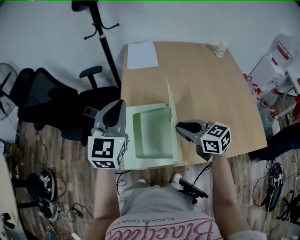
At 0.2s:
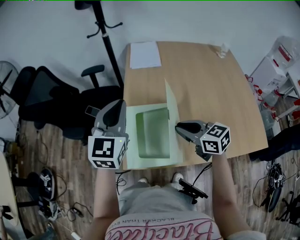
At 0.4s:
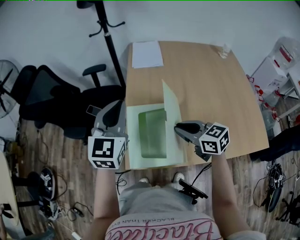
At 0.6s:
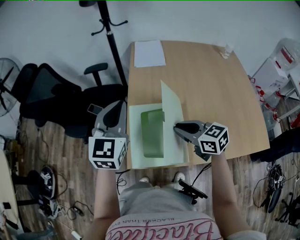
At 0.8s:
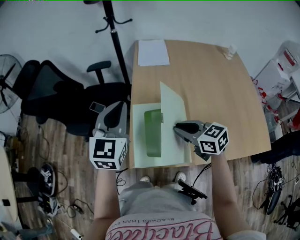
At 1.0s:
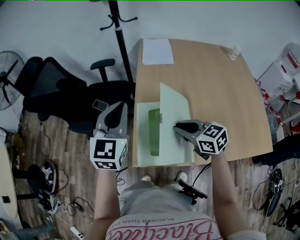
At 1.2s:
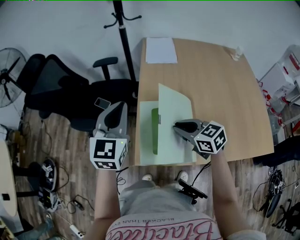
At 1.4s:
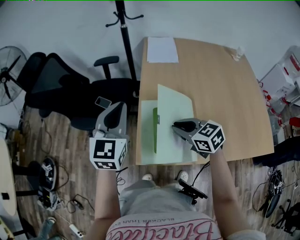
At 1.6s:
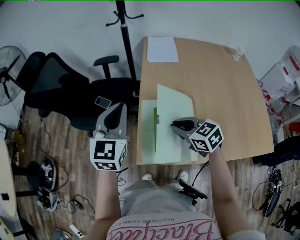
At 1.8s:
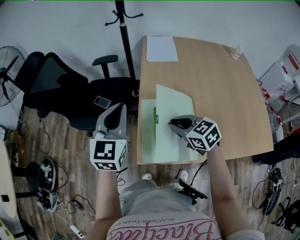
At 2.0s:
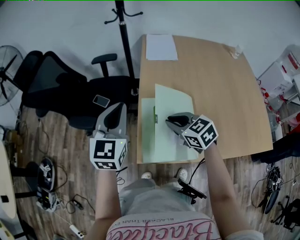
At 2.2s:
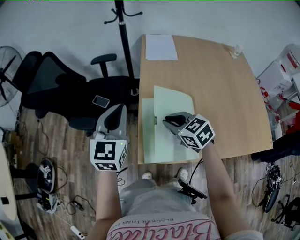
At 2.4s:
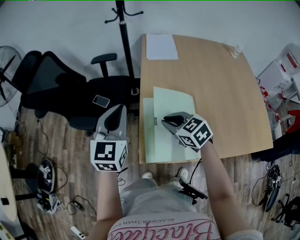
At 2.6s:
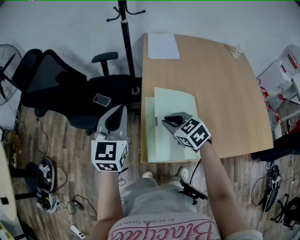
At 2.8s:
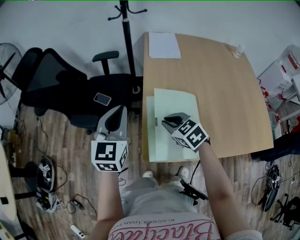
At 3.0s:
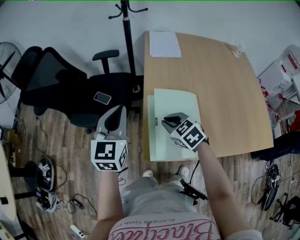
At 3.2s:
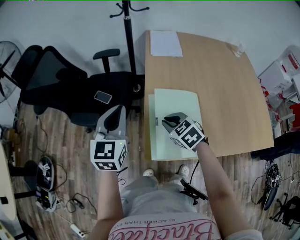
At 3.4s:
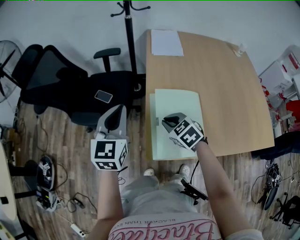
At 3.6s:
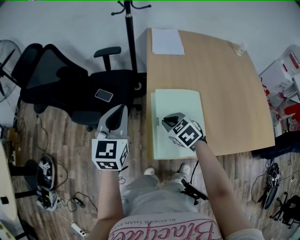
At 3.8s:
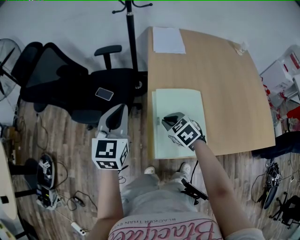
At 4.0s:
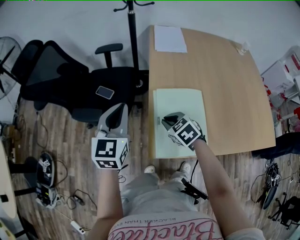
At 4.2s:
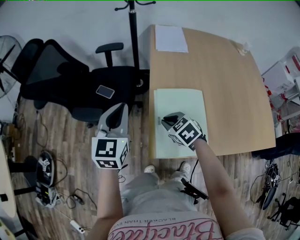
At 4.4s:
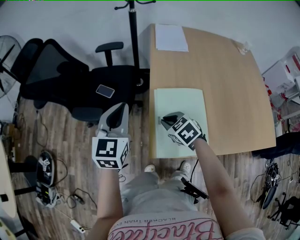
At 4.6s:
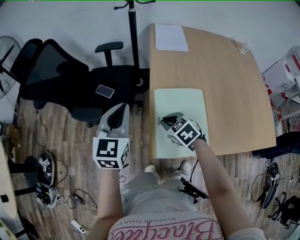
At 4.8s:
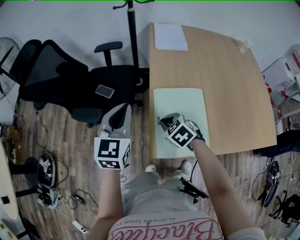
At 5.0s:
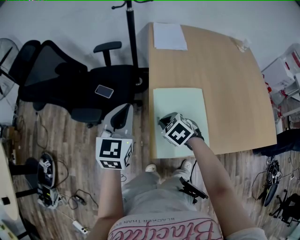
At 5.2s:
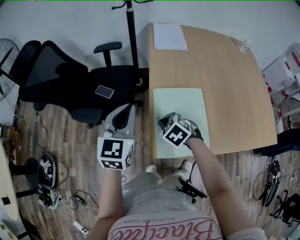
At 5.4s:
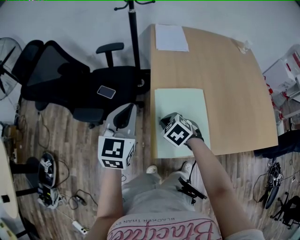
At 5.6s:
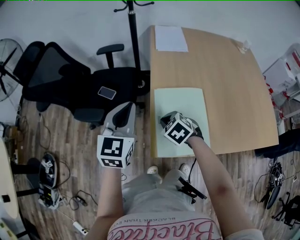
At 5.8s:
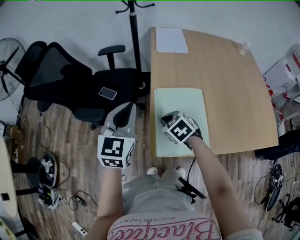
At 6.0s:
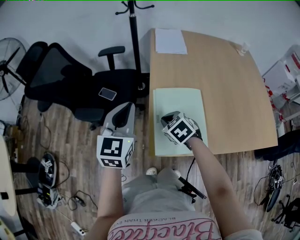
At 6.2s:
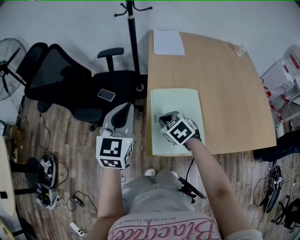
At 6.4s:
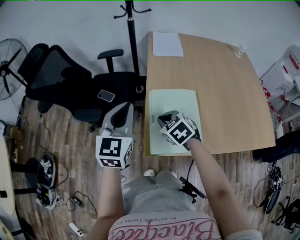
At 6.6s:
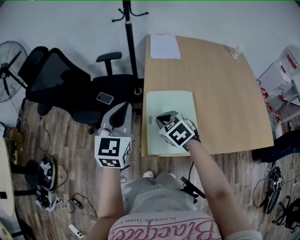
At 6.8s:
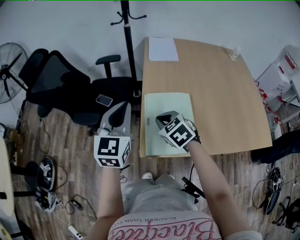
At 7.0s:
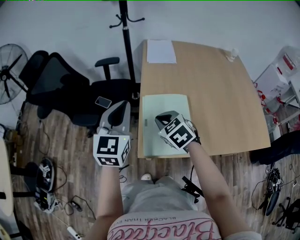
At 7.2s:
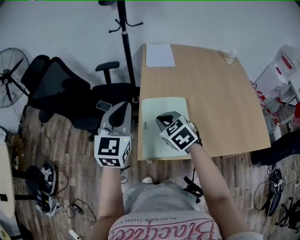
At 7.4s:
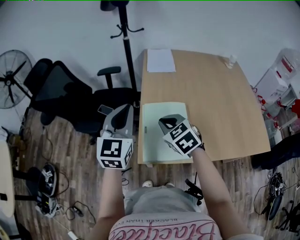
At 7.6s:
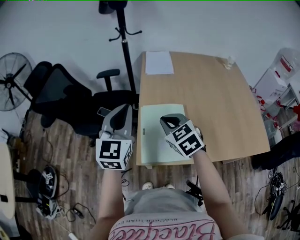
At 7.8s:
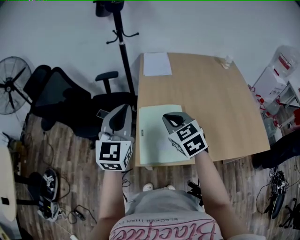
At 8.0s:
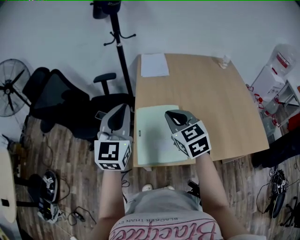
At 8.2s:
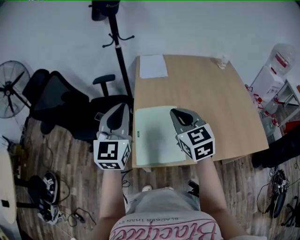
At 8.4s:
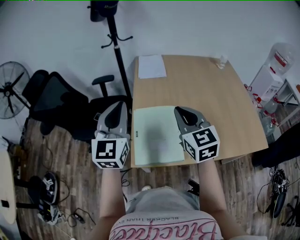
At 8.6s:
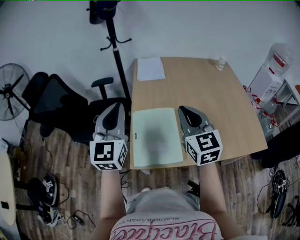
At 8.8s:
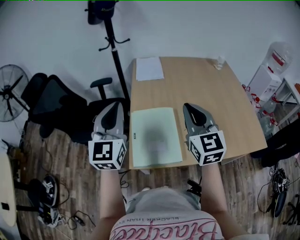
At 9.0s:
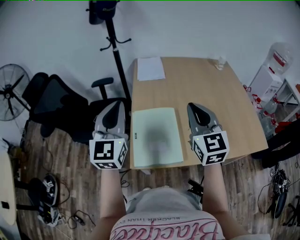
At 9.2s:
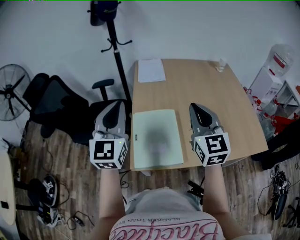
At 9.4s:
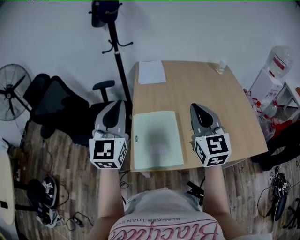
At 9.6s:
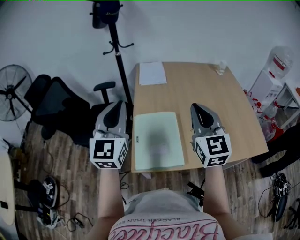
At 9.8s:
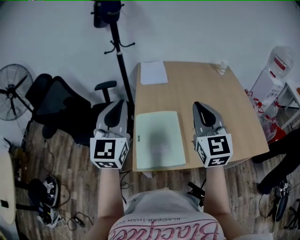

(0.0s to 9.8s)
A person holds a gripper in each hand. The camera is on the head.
0.0s - 1.4s: The two grippers go some 10 cm to the left.
1.4s - 2.8s: The left gripper moves about 5 cm. Meanwhile the right gripper moves to the left, roughly 5 cm.
2.8s - 4.2s: The right gripper heads downward, covering roughly 5 cm.
4.2s - 5.6s: The grippers make only small movements.
5.6s - 7.0s: The left gripper shifts some 5 cm upward. The right gripper shifts about 10 cm upward.
7.0s - 8.4s: The right gripper moves upward and to the right, about 20 cm, and angles its fingers upward, by some 30 degrees. Meanwhile the left gripper moves upward, roughly 5 cm.
8.4s - 9.8s: The right gripper heads upward and to the right, covering roughly 10 cm.

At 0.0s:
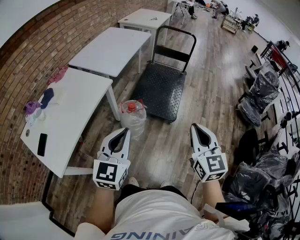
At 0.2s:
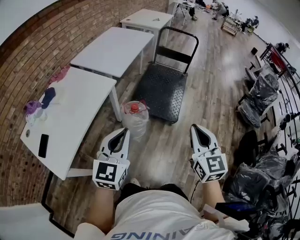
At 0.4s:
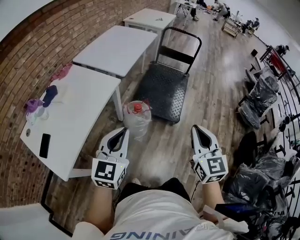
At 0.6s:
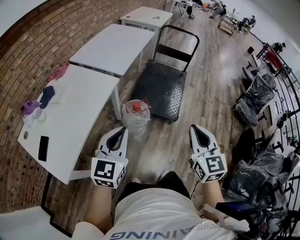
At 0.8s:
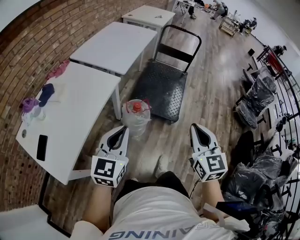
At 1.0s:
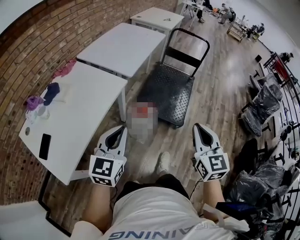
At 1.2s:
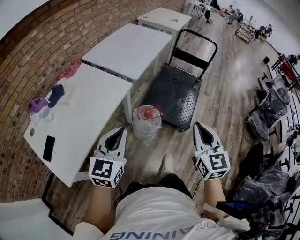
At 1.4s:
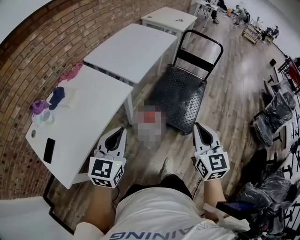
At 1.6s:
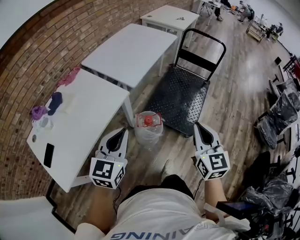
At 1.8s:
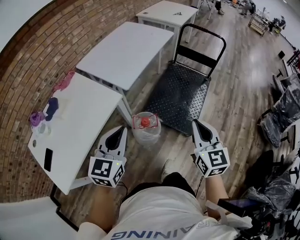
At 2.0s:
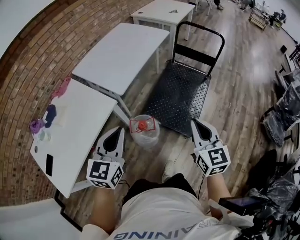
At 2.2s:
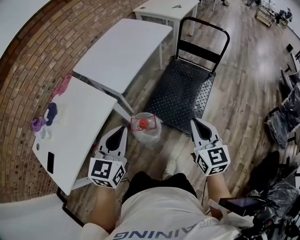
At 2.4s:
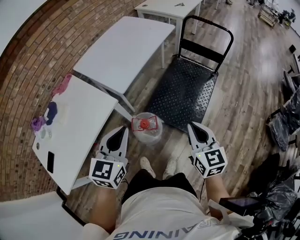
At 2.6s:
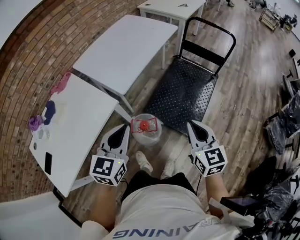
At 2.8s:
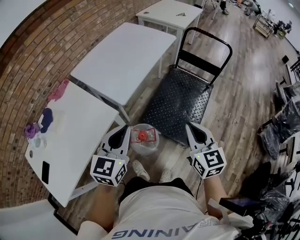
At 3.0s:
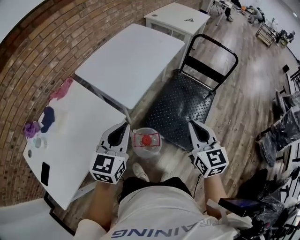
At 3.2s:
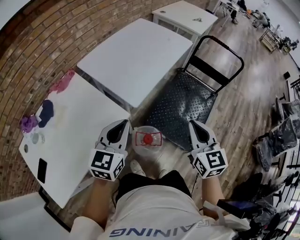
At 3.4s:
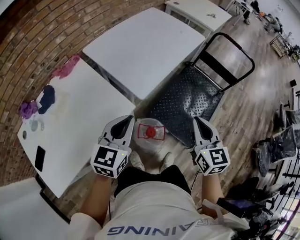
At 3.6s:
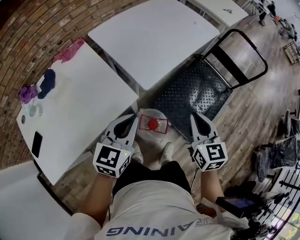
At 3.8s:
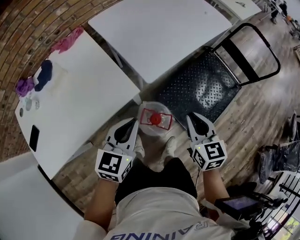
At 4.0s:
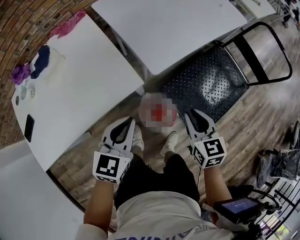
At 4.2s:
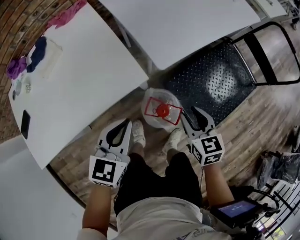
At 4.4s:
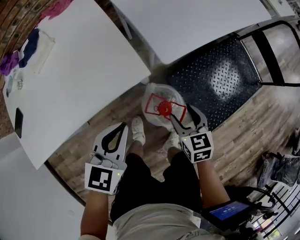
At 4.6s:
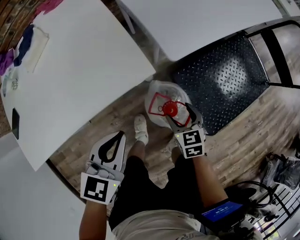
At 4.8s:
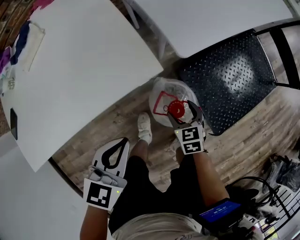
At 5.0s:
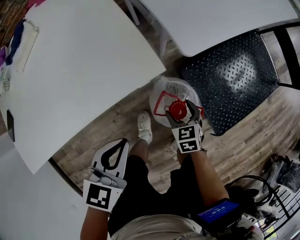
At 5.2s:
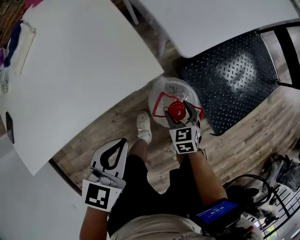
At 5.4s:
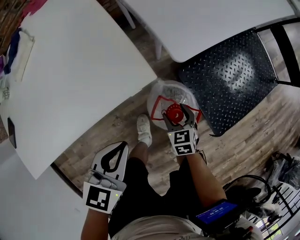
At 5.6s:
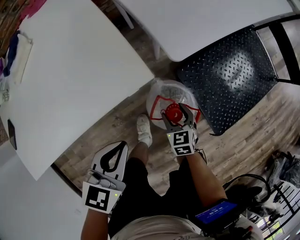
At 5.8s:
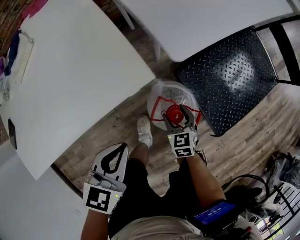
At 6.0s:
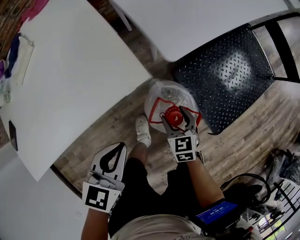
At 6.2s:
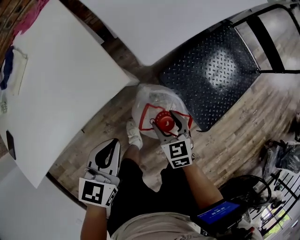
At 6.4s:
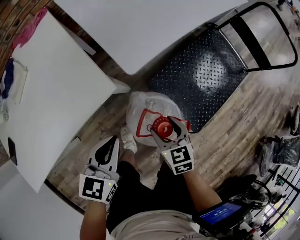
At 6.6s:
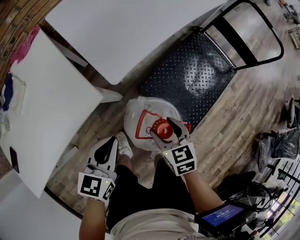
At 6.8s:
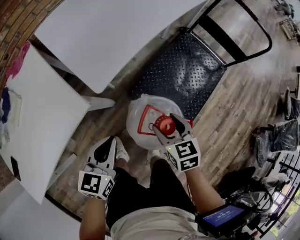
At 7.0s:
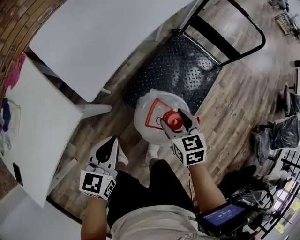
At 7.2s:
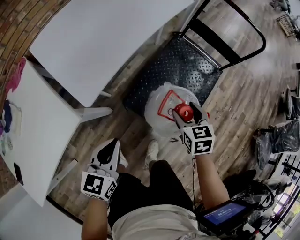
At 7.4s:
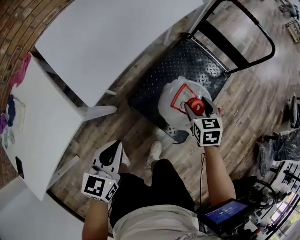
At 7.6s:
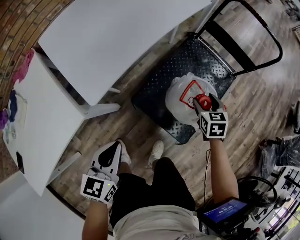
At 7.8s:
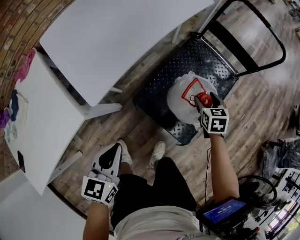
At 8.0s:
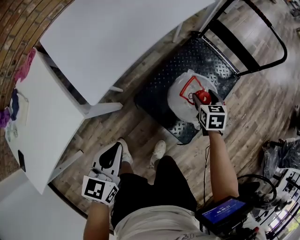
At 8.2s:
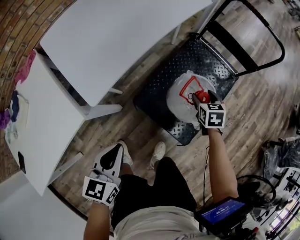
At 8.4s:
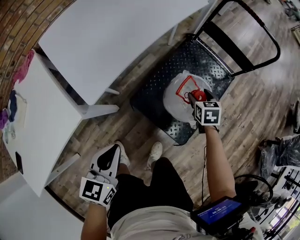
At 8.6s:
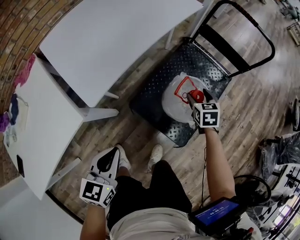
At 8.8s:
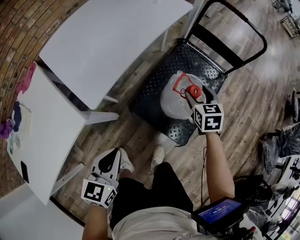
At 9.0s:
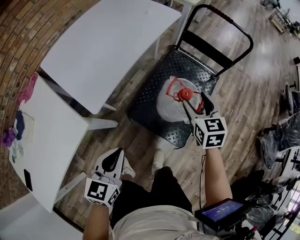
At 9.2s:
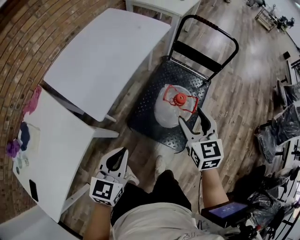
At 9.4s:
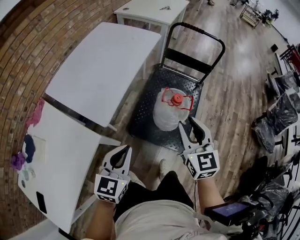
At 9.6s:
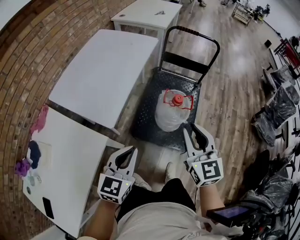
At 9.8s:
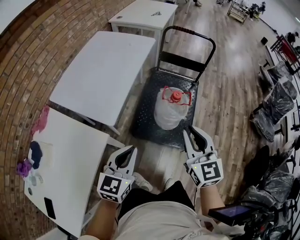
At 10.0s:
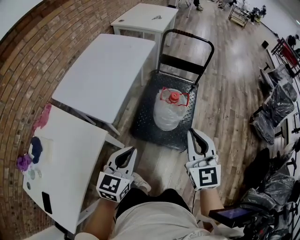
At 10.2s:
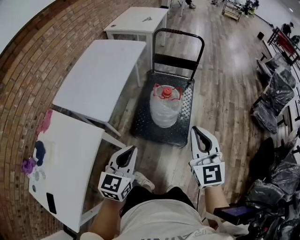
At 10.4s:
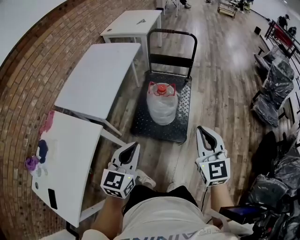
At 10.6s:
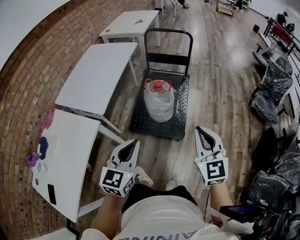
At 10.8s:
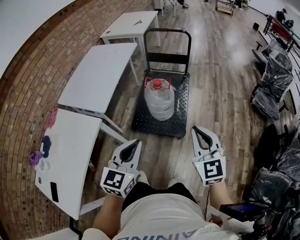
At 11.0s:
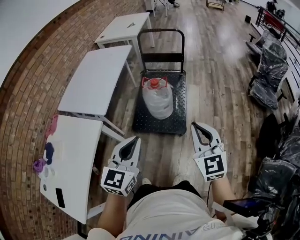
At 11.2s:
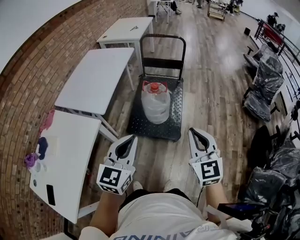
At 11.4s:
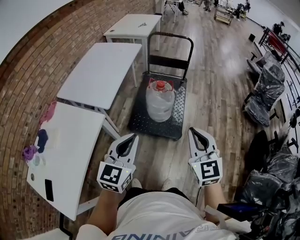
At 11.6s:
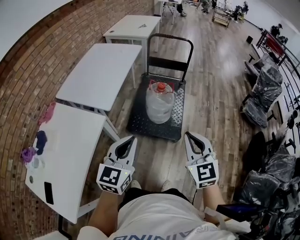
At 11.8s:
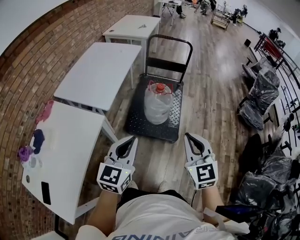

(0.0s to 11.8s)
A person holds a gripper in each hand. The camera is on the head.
0.0s - 1.4s: The left gripper moves to the left and forward, approximately 15 cm; the right gripper shifts roughly 20 cm forward and to the left.
1.4s - 3.0s: Both grippers travel together forward, about 25 cm.
3.0s - 4.4s: The left gripper is displaced downward by approximately 25 cm, and changes its angle by approximately 30 degrees, while the right gripper is displaced downward by roughly 35 cm, swivels some 40 degrees, and opens.
4.4s - 6.0s: The right gripper is displaced downward by roughly 15 cm, while the left gripper is displaced downward by roughly 5 cm.
6.0s - 7.4s: The left gripper goes approximately 25 cm to the right, forward and upward; the right gripper goes approximately 40 cm to the right, upward and forward, and rotates about 20 degrees.
7.4s - 8.8s: The right gripper goes downward and returns, roughly 5 cm each way.
8.8s - 10.4s: The right gripper is displaced backward and upward by about 50 cm, tilts its fingers about 30 degrees upward, and closes up. Meanwhile the left gripper heads upward, backward and to the right, covering approximately 20 cm, and swivels approximately 30 degrees.
10.4s - 11.8s: The left gripper shifts approximately 10 cm backward and to the left. Meanwhile the right gripper is displaced backward and to the left by some 15 cm.

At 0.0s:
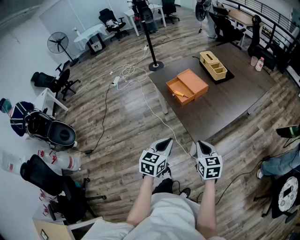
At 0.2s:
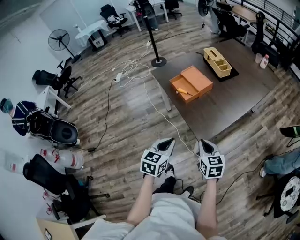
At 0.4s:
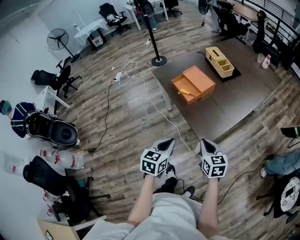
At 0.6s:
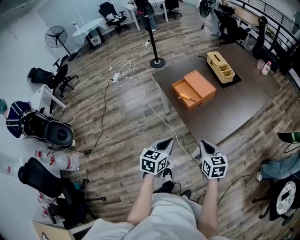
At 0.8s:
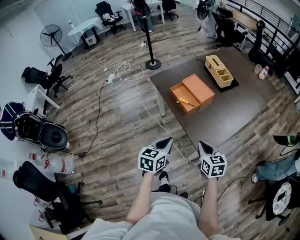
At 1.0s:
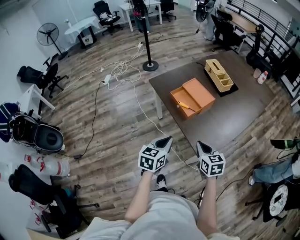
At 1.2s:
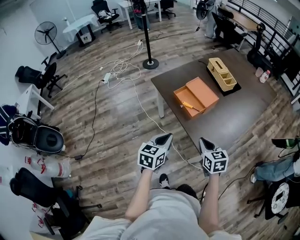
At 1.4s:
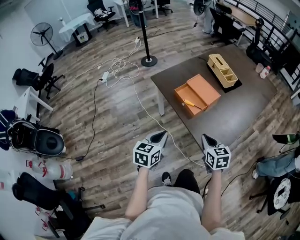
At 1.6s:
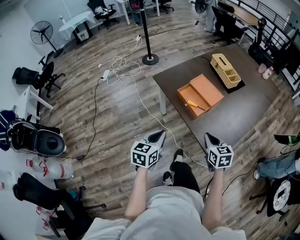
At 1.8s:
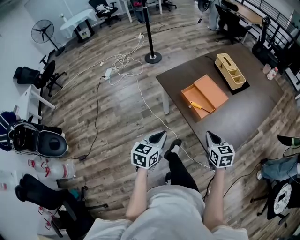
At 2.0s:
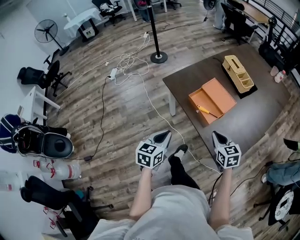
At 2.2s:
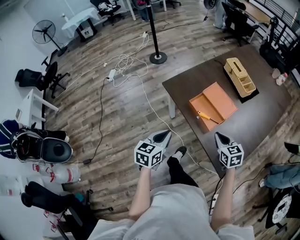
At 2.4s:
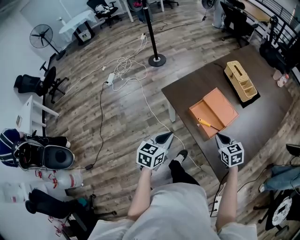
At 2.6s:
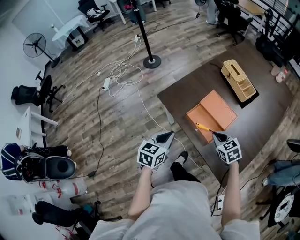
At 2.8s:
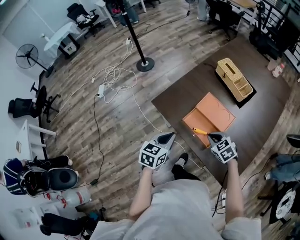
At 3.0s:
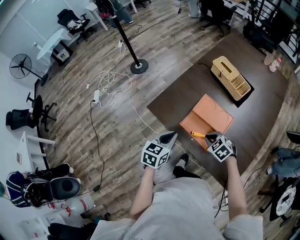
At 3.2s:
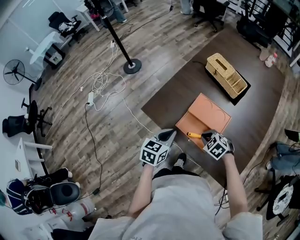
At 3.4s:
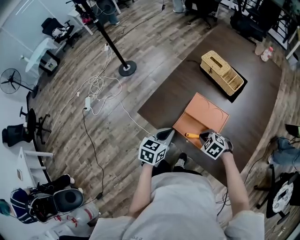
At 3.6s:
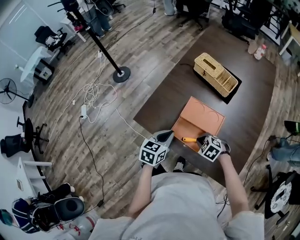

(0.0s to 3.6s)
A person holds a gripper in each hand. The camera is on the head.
0.0s - 1.8s: The grippers both shift forward and to the left by roughly 25 cm.
1.8s - 3.6s: The right gripper goes about 25 cm forward and downward, and points its fingers some 30 degrees further downward. Meanwhile the left gripper travels forward by approximately 30 cm, and turns by roughly 30 degrees.
